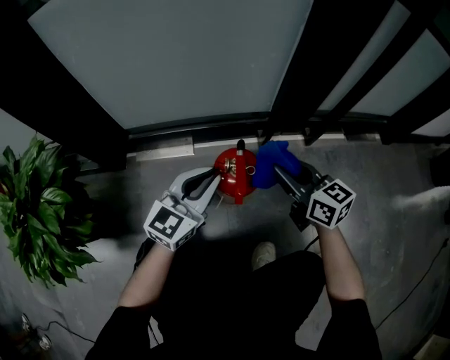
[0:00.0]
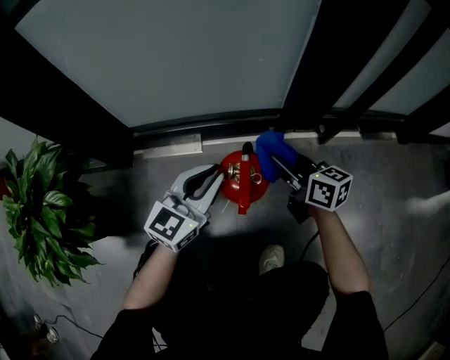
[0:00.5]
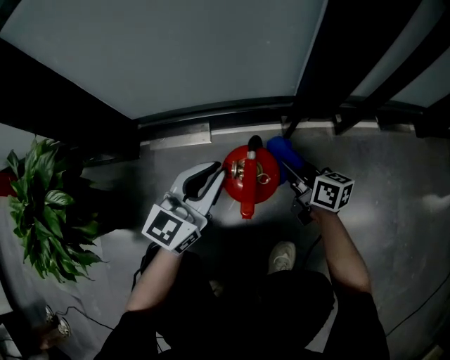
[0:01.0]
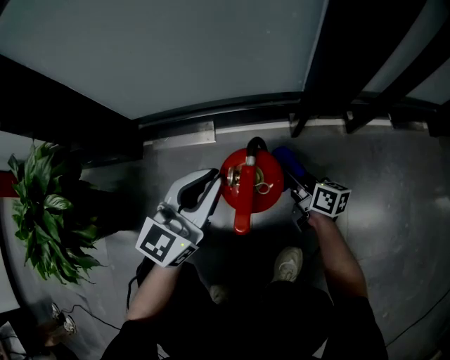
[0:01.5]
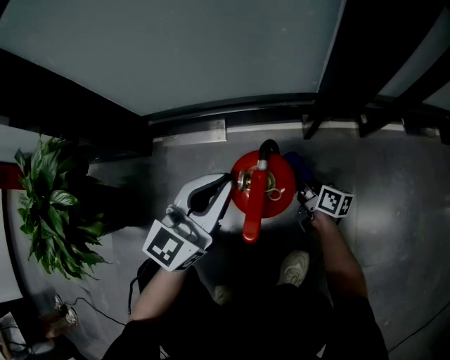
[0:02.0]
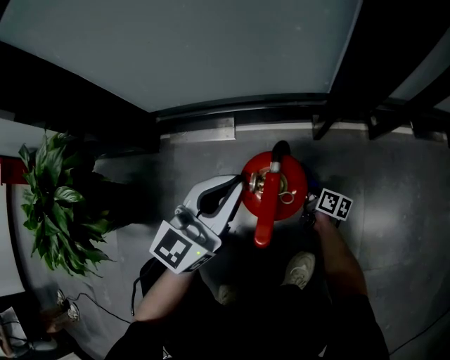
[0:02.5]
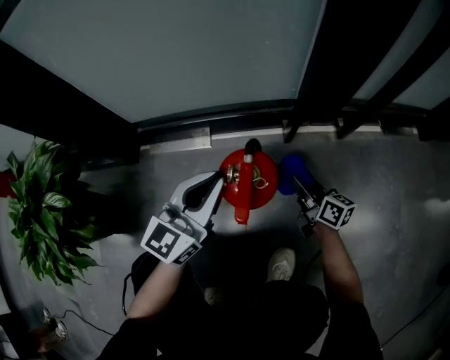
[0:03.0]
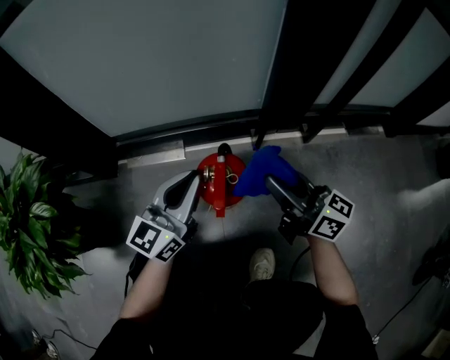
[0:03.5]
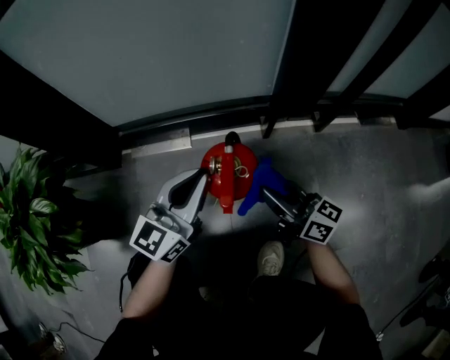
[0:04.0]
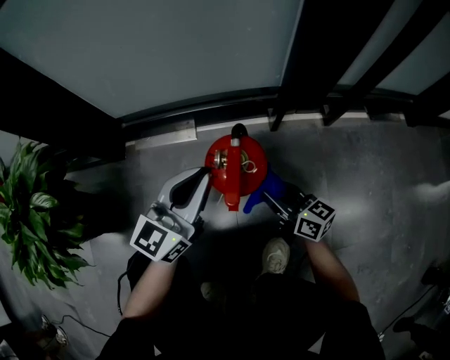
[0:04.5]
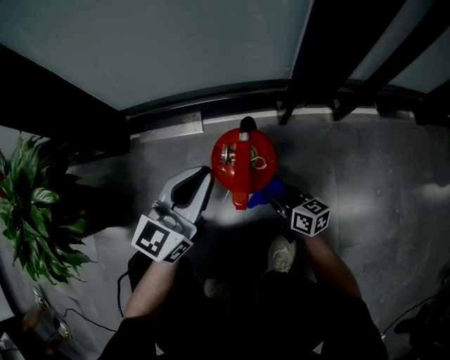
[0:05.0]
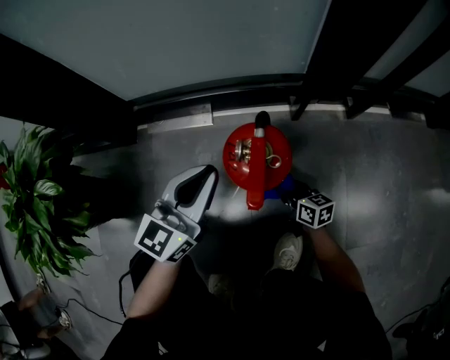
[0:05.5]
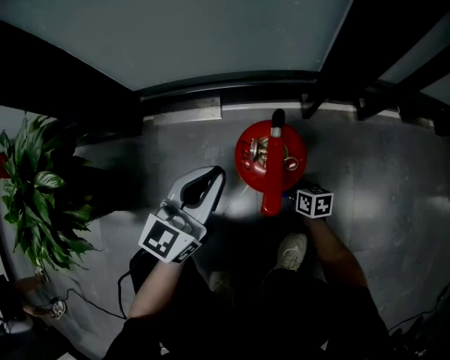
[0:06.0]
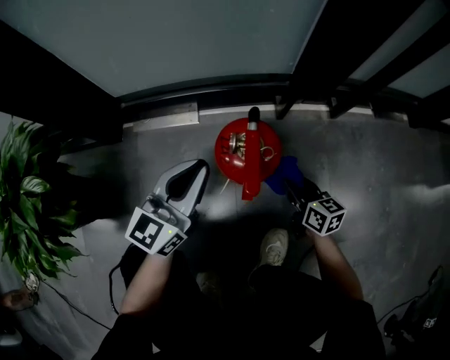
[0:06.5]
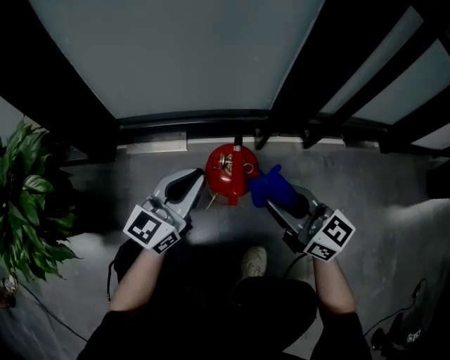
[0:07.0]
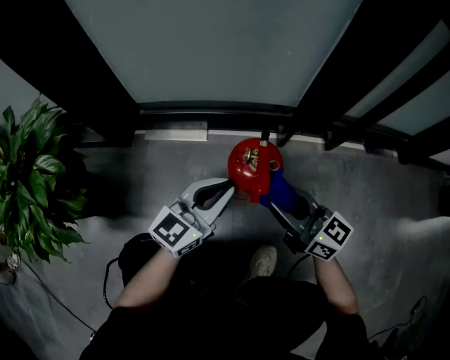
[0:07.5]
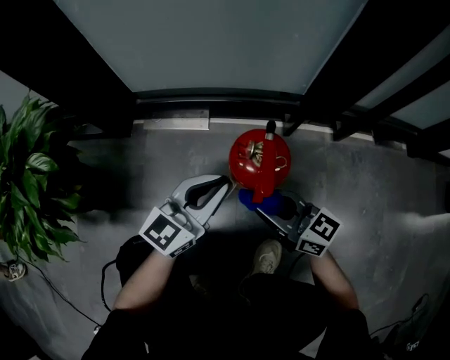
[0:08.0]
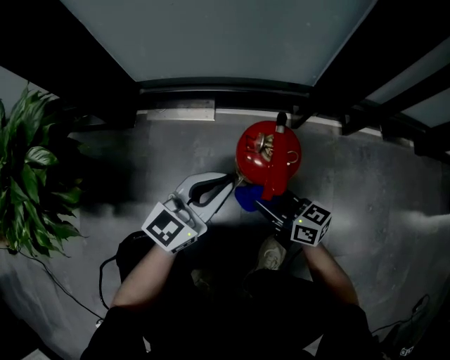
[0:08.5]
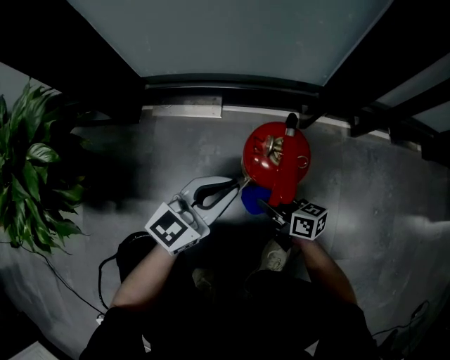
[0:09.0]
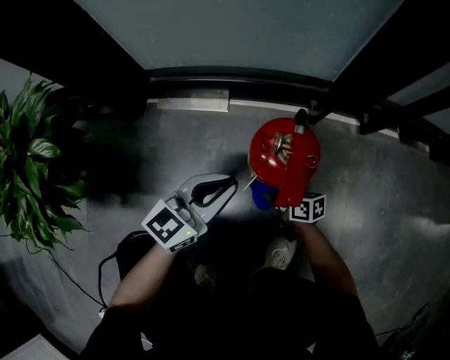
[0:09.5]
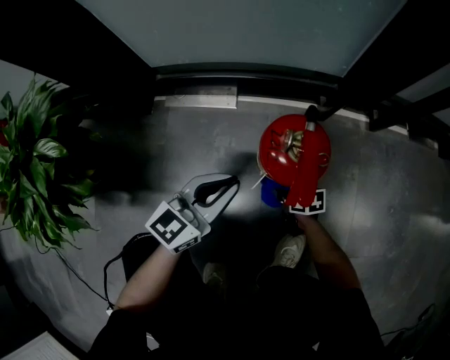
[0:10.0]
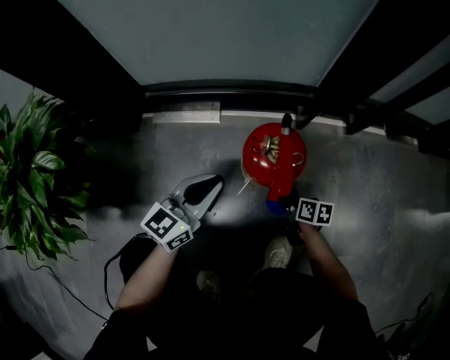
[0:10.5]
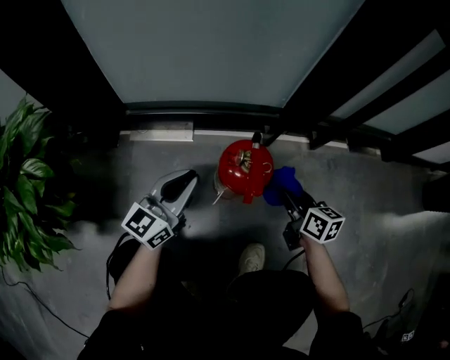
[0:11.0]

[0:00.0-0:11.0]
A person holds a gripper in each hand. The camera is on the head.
0:00.0 to 0:02.0: The right gripper moves downward, approximately 30 cm, and rotates around the line of its fingers by some 40 degrees, clockwise from behind.
0:02.0 to 0:03.5: The right gripper heads upward, covering some 30 cm, and swivels roughly 40 degrees.
0:03.5 to 0:05.5: The left gripper is displaced downward by approximately 5 cm; the right gripper moves downward, roughly 30 cm, and angles its fingers downward, by roughly 40 degrees.
0:05.5 to 0:07.5: The right gripper goes up and down, about 35 cm each way, reversing 2 times, and rotates approximately 40 degrees.
0:07.5 to 0:09.0: The left gripper ends up roughly 5 cm from where it was, while the right gripper is displaced downward by some 20 cm, and turns by approximately 40 degrees.
0:09.0 to 0:11.0: The left gripper changes place by about 5 cm; the right gripper moves to the right and upward, some 15 cm, and rotates roughly 30 degrees.

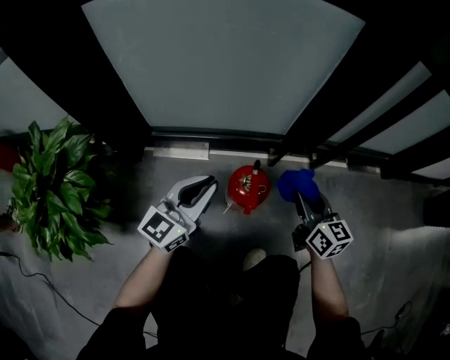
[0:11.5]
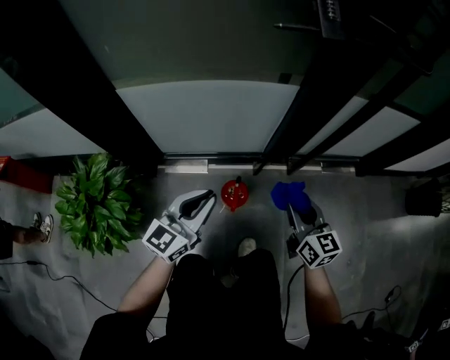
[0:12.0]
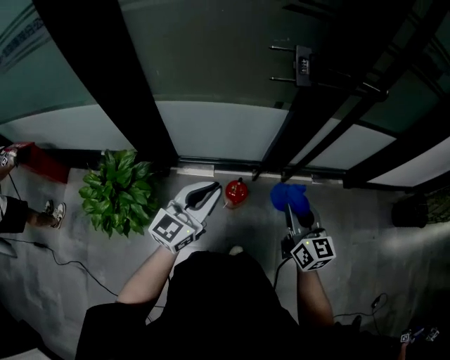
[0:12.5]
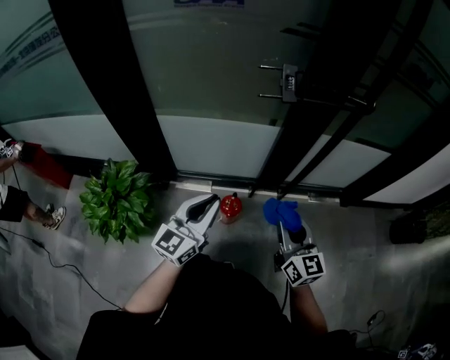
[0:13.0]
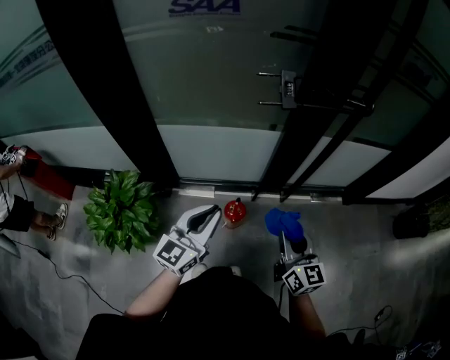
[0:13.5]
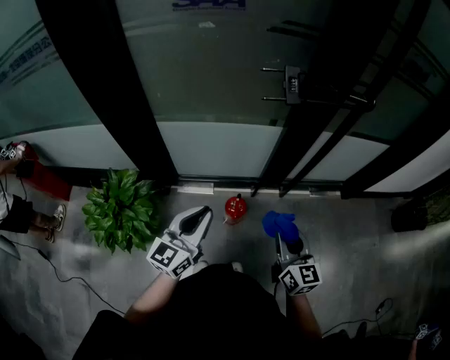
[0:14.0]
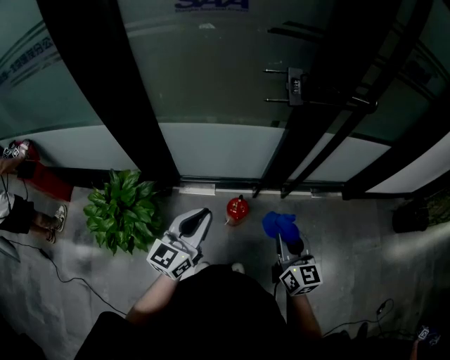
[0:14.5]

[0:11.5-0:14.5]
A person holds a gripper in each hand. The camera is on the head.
0:11.5 to 0:13.0: The two grippers go roughly 40 cm upward.
0:13.0 to 0:14.5: The left gripper travels to the left by about 5 cm.

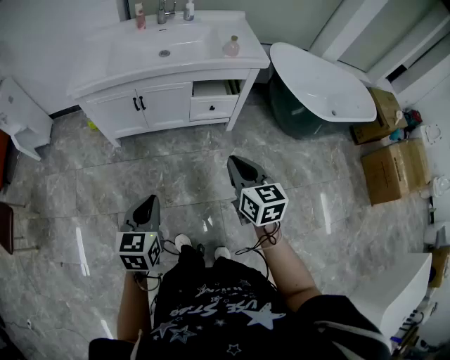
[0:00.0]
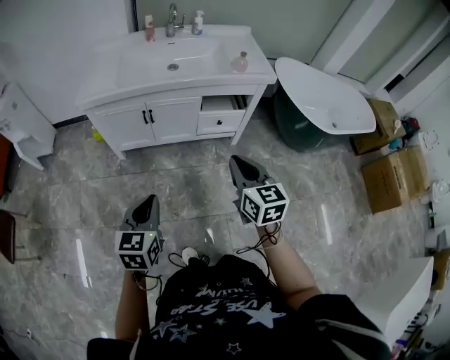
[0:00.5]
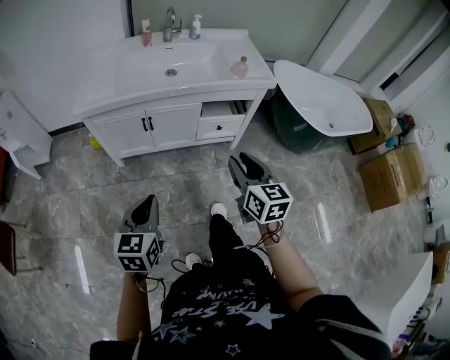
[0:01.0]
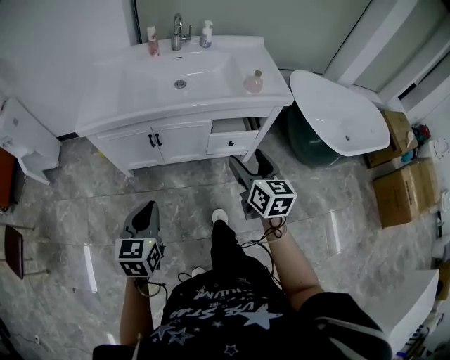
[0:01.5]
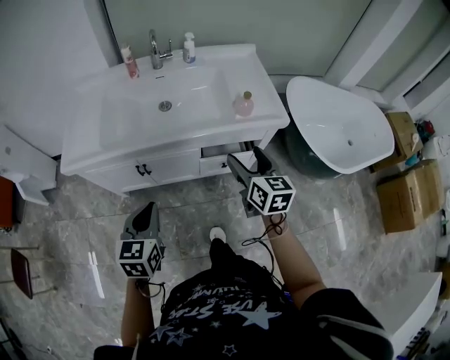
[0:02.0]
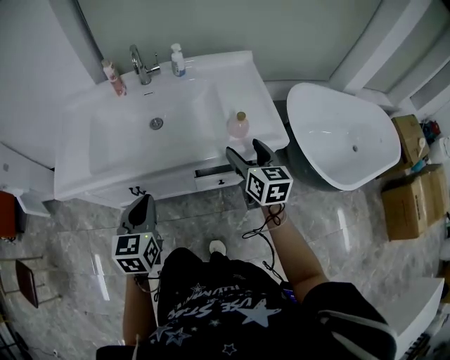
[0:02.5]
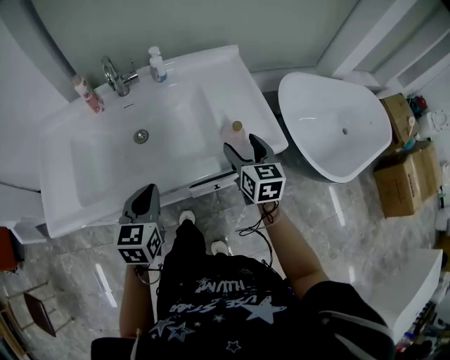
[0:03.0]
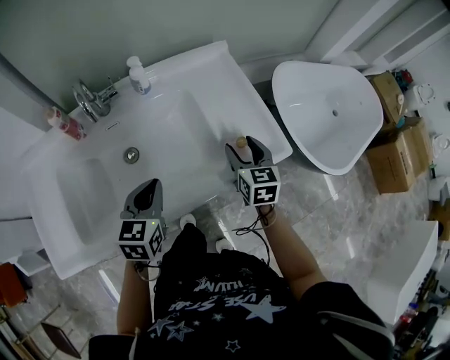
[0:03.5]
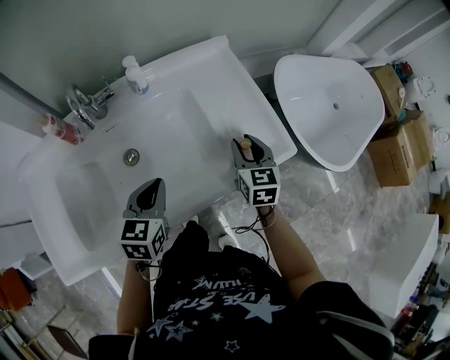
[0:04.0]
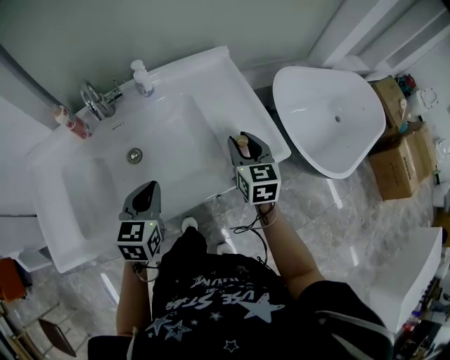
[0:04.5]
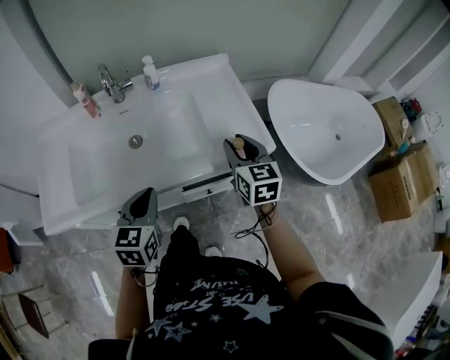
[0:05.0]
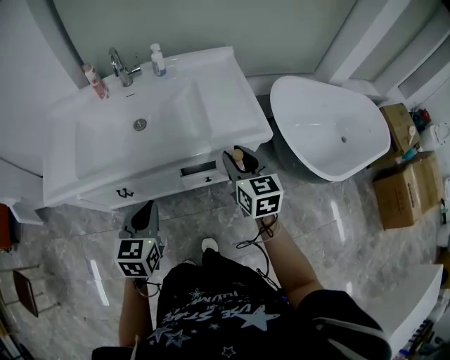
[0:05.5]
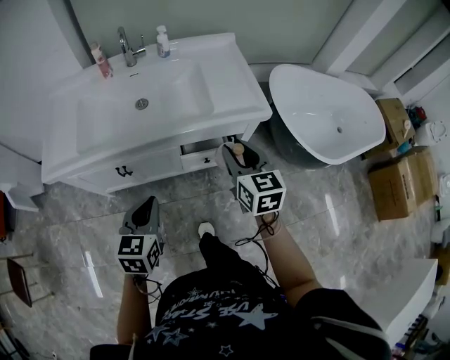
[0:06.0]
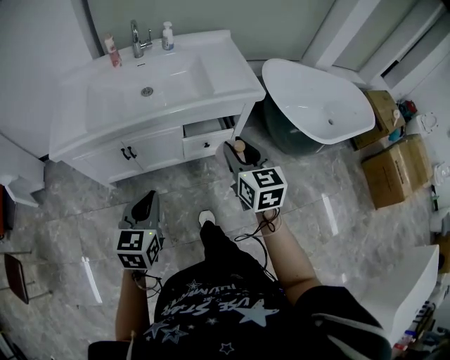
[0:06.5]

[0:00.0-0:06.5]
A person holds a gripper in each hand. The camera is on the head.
0:00.0 to 0:02.0: The grippers both shift forward by approximately 35 cm. The right gripper opens its fingers.
0:02.0 to 0:04.5: The right gripper changes place by approximately 30 cm, turns by some 20 degrees, and closes its fingers. The left gripper moves roughly 35 cm.
0:04.5 to 0:06.5: Both grippers travel together backward, approximately 40 cm.

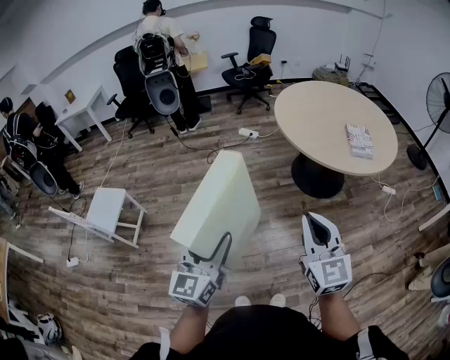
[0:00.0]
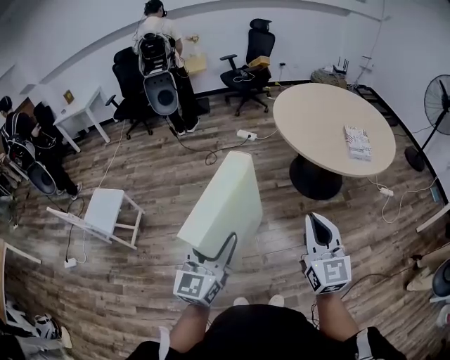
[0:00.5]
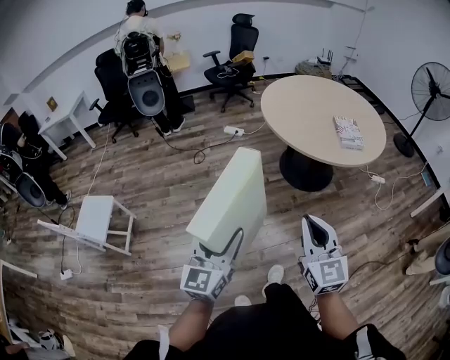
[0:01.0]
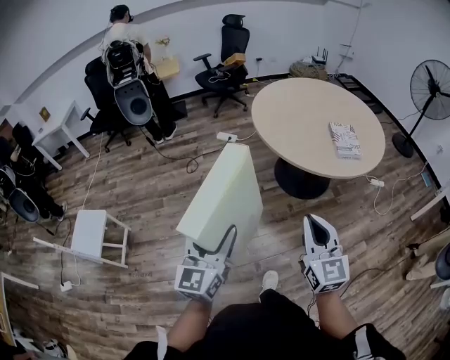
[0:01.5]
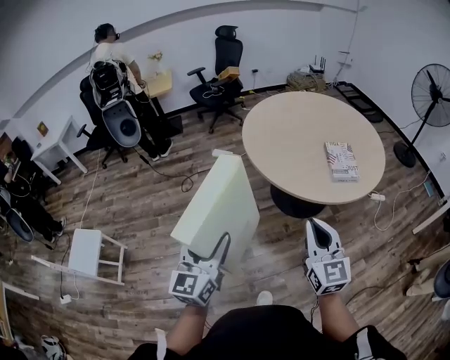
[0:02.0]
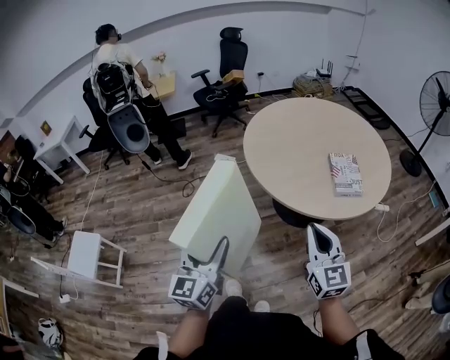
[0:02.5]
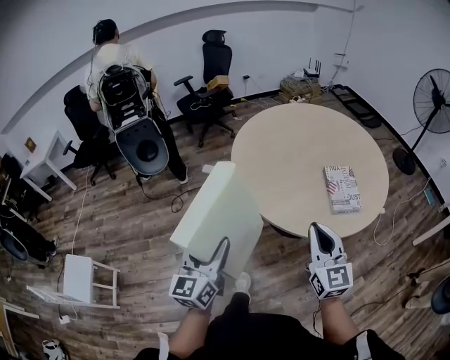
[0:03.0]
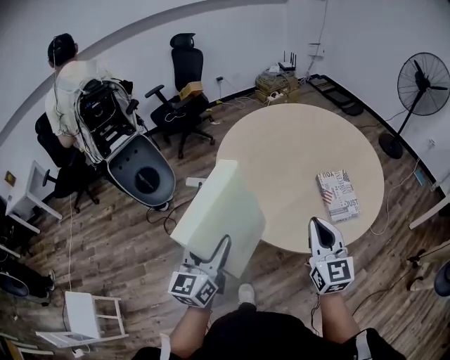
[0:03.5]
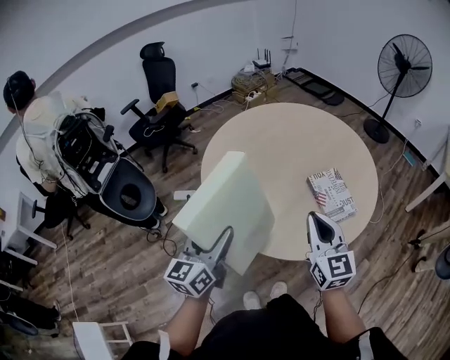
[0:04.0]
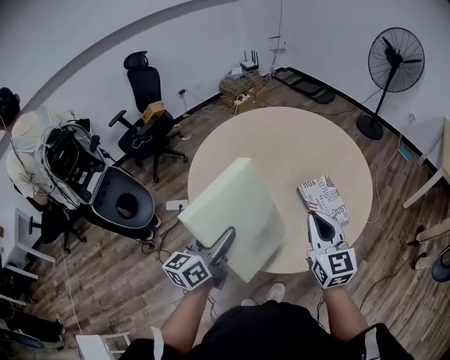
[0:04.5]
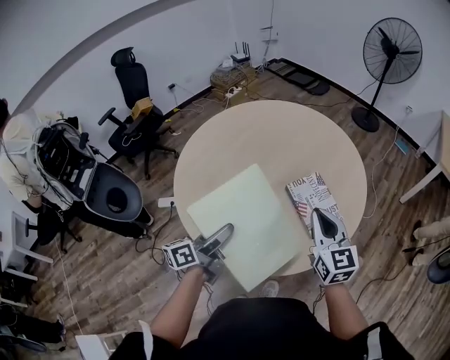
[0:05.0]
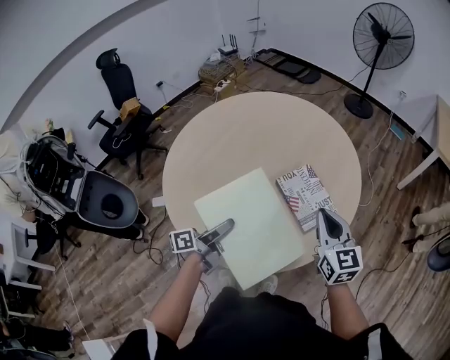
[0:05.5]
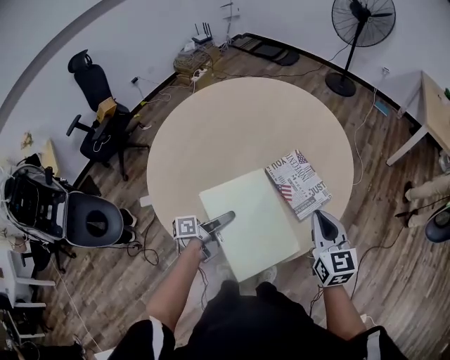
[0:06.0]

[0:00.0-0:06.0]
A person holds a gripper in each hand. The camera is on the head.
0:00.0 to 0:02.0: Both grippers move forward and to the right, approximately 25 cm.
0:02.0 to 0:04.0: Both grippers move forward, about 40 cm. The left gripper swivels roughly 30 degrees.
0:04.0 to 0:06.0: The right gripper ends up roughly 20 cm from where it was, and changes its angle by approximately 20 degrees. Meanwhile the left gripper ends up about 35 cm from where it was, and rotates roughly 70 degrees.
